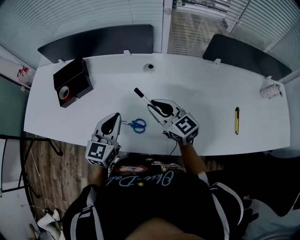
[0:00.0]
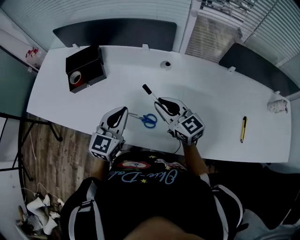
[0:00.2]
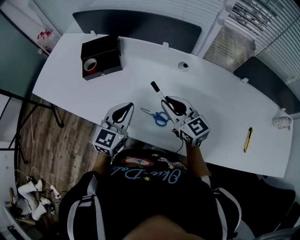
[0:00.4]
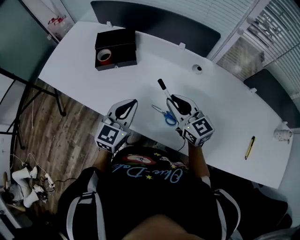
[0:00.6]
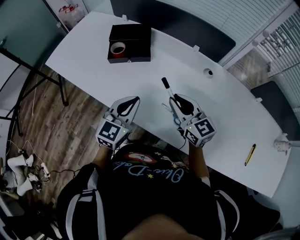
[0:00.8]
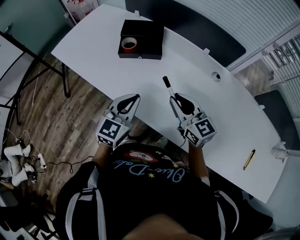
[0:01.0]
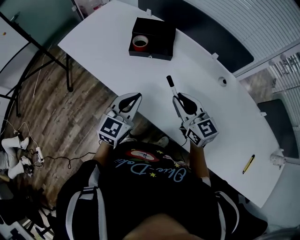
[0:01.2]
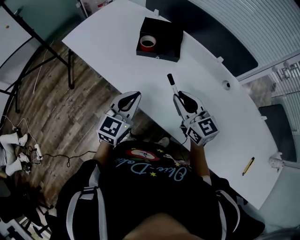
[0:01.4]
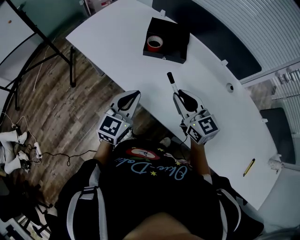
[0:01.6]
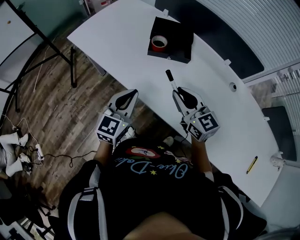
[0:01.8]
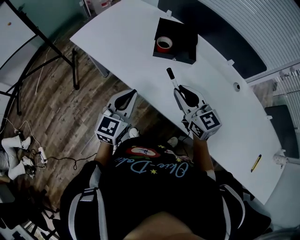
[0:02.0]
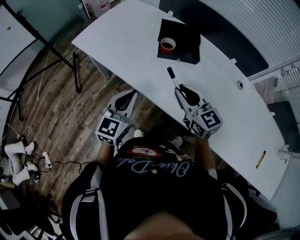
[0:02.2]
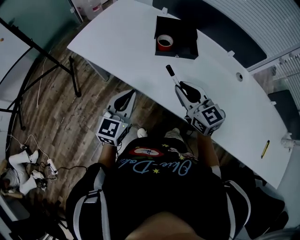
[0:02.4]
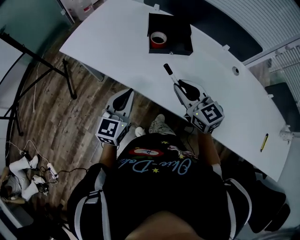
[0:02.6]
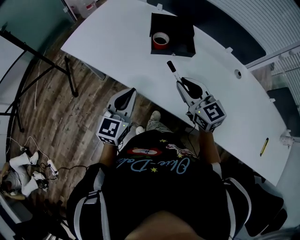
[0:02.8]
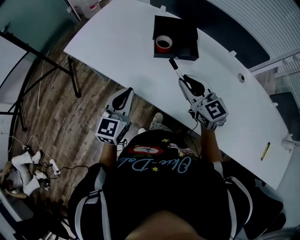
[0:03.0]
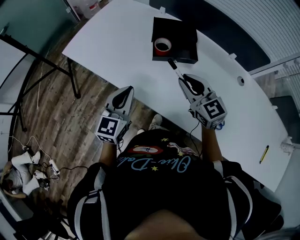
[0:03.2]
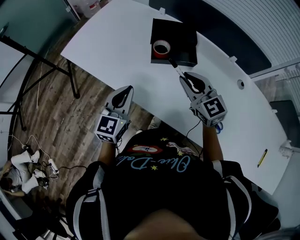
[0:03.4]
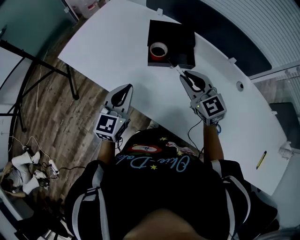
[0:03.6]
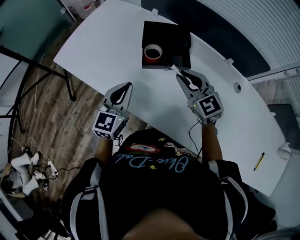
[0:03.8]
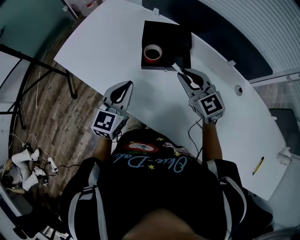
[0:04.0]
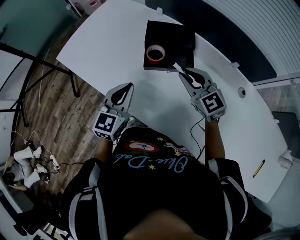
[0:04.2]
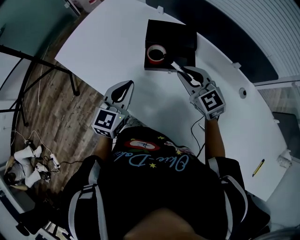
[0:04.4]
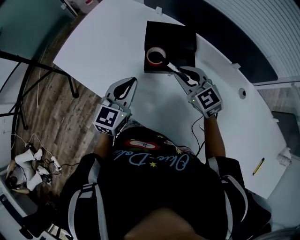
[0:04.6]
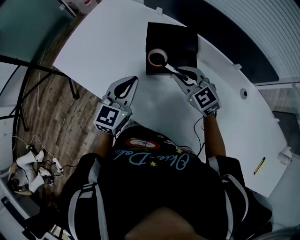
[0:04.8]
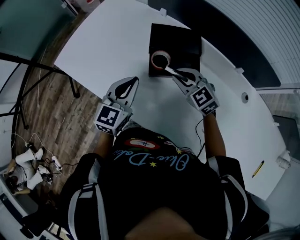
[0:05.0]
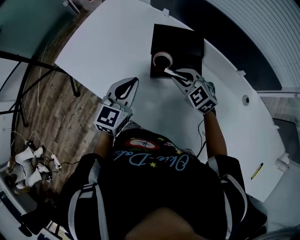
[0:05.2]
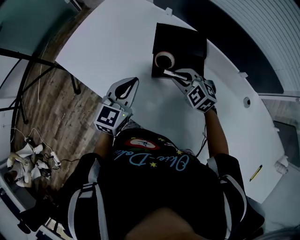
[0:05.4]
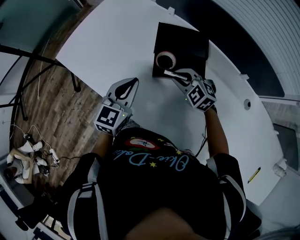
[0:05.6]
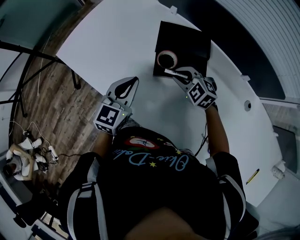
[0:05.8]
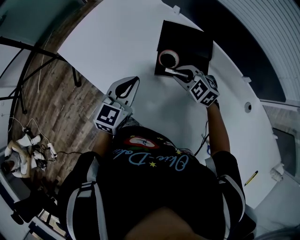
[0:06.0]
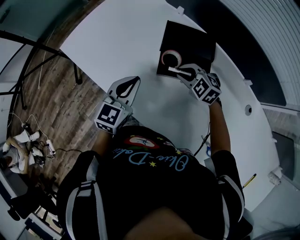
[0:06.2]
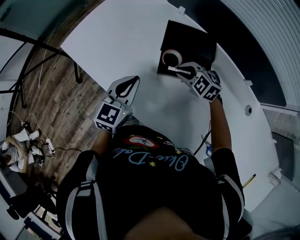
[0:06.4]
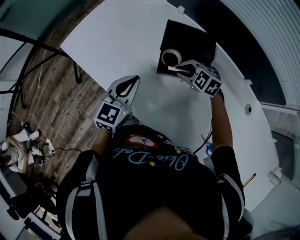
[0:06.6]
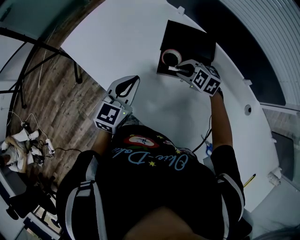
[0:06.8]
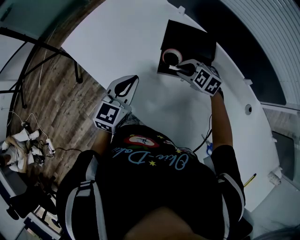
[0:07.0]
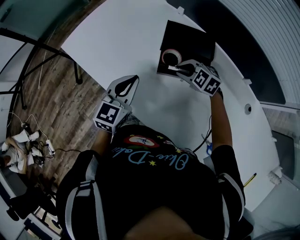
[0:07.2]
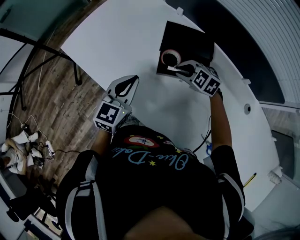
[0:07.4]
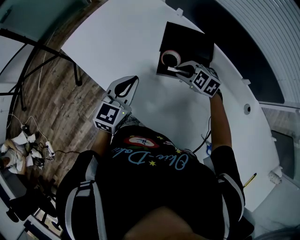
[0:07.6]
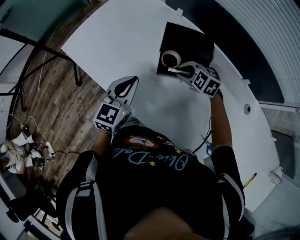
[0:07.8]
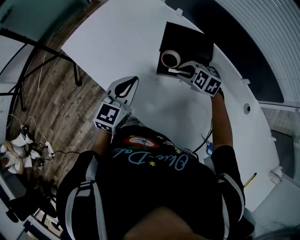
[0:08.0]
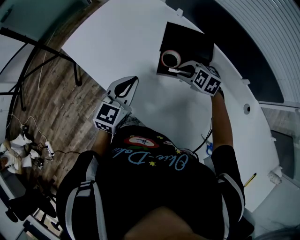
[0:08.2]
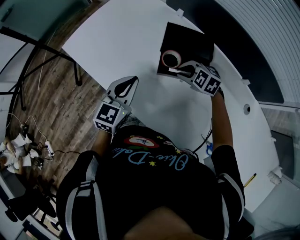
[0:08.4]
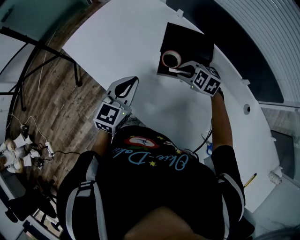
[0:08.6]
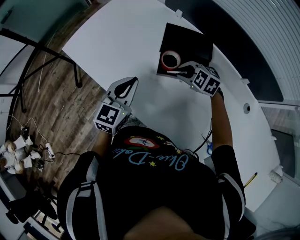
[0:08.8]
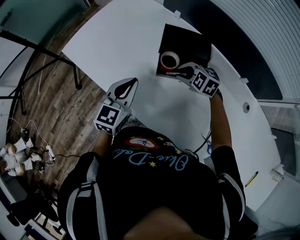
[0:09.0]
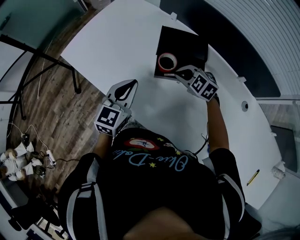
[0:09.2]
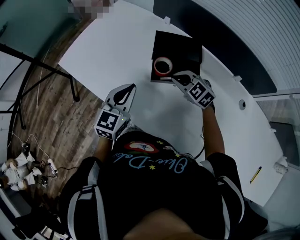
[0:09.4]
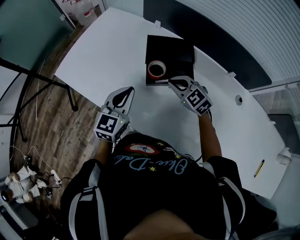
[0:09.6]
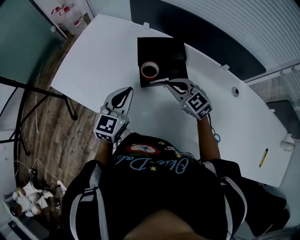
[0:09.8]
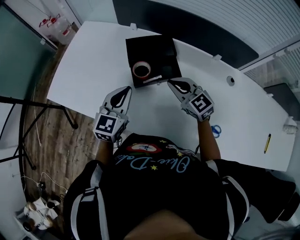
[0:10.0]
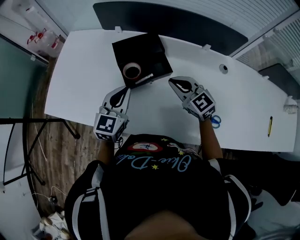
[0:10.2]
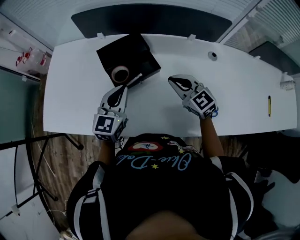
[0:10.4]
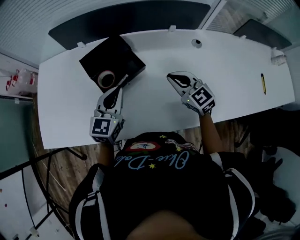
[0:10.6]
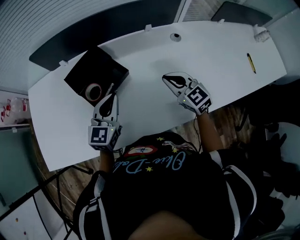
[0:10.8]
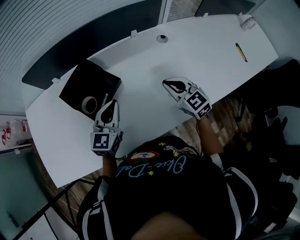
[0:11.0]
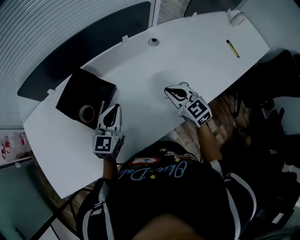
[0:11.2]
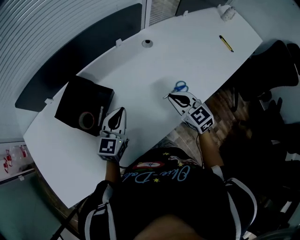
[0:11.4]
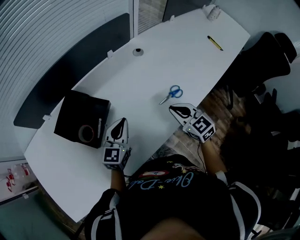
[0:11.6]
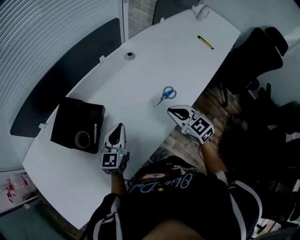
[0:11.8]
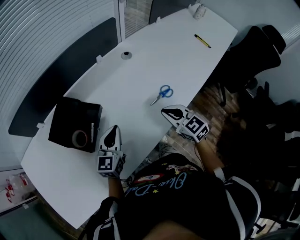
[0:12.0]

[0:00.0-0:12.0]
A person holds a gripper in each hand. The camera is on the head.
0:00.0 to 0:01.6: Both grippers move to the left, about 30 cm. The right gripper turns by about 20 degrees; the left gripper turns by some 20 degrees.
0:01.6 to 0:03.0: The right gripper travels forward and to the left by about 10 cm; the left gripper goes about 10 cm to the left and forward.
0:03.0 to 0:04.4: The right gripper is displaced forward by about 15 cm; the left gripper heads forward and to the right, covering about 15 cm.
0:04.4 to 0:06.0: The left gripper shifts by approximately 5 cm, while the right gripper travels downward and forward by roughly 10 cm, and changes its angle by about 30 degrees.
0:06.0 to 0:07.6: The grippers make only small movements.
0:07.6 to 0:09.0: The two grippers keep their place.
0:09.0 to 0:10.4: The right gripper shifts by roughly 20 cm, and tilts its fingers some 30 degrees upward; the left gripper shifts by roughly 10 cm, and rotates roughly 30 degrees.
0:10.4 to 0:12.0: The left gripper ends up some 15 cm from where it was, and rotates roughly 40 degrees; the right gripper moves some 20 cm, and swivels about 50 degrees.

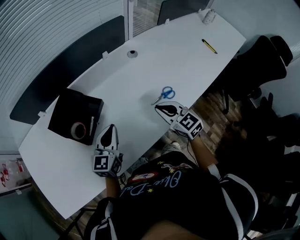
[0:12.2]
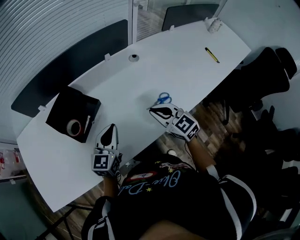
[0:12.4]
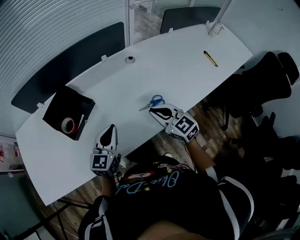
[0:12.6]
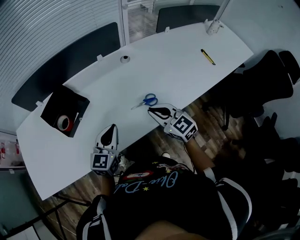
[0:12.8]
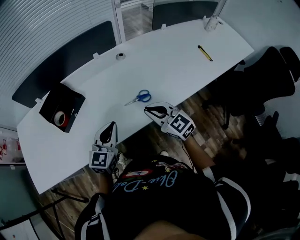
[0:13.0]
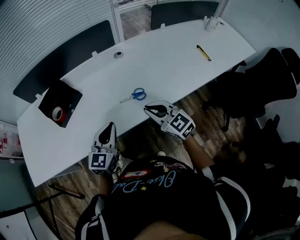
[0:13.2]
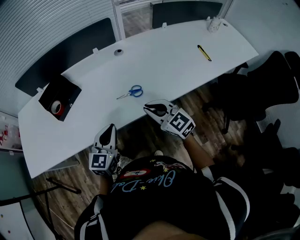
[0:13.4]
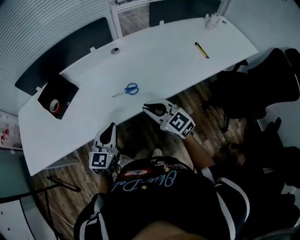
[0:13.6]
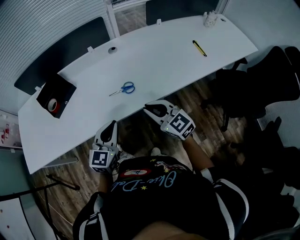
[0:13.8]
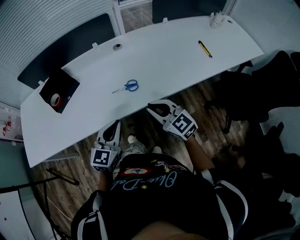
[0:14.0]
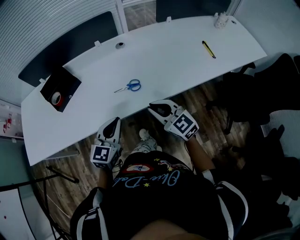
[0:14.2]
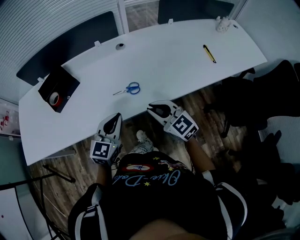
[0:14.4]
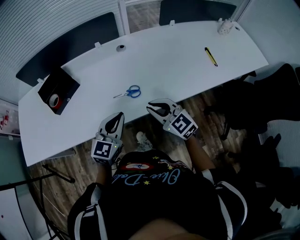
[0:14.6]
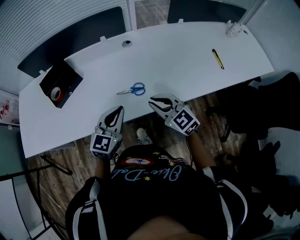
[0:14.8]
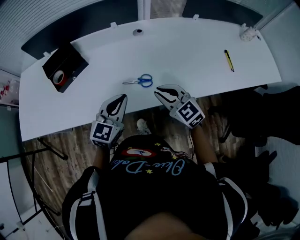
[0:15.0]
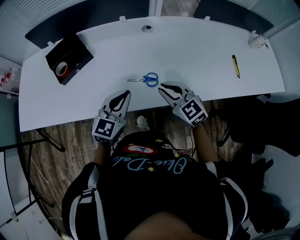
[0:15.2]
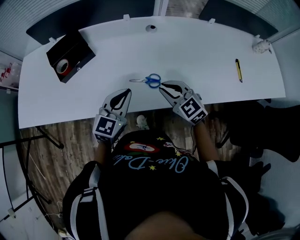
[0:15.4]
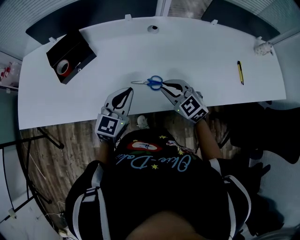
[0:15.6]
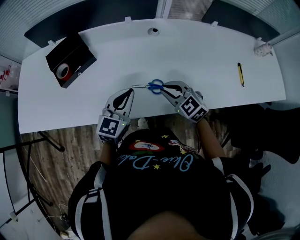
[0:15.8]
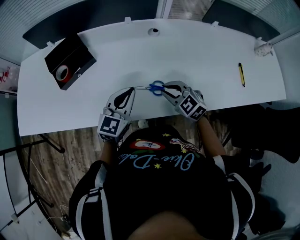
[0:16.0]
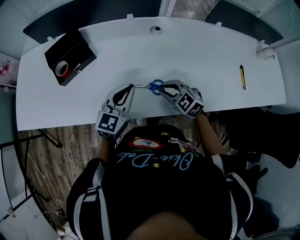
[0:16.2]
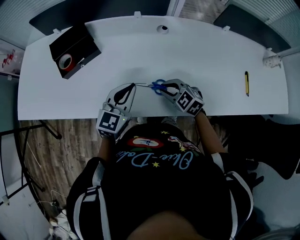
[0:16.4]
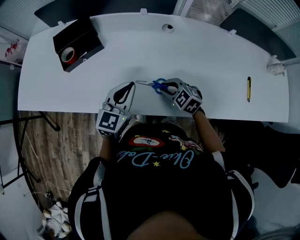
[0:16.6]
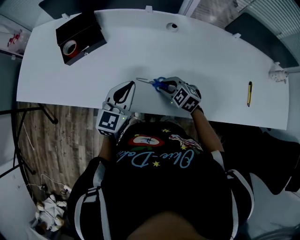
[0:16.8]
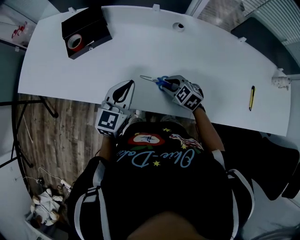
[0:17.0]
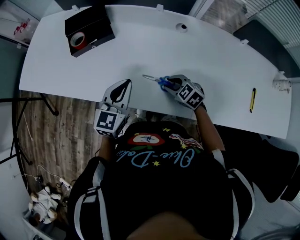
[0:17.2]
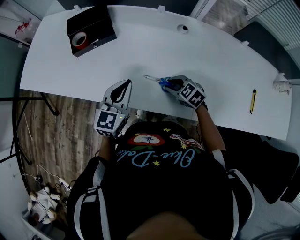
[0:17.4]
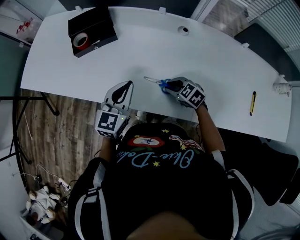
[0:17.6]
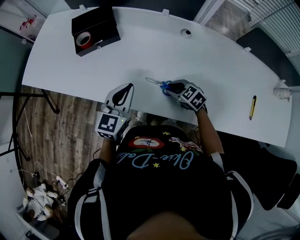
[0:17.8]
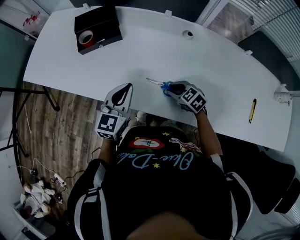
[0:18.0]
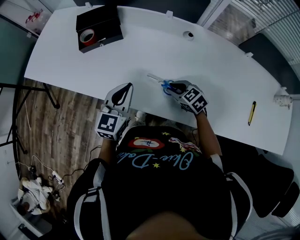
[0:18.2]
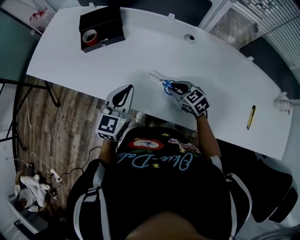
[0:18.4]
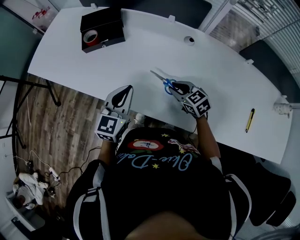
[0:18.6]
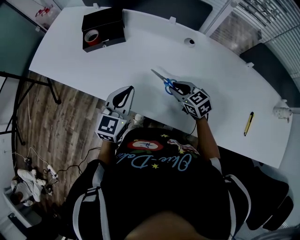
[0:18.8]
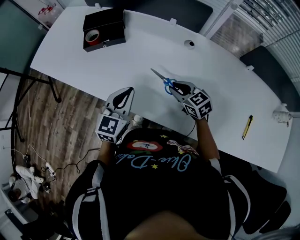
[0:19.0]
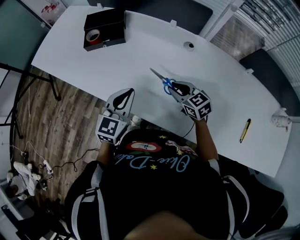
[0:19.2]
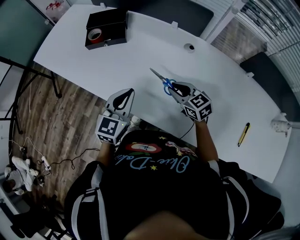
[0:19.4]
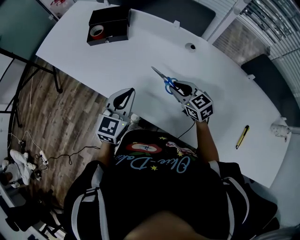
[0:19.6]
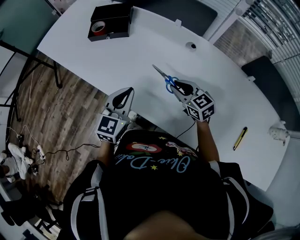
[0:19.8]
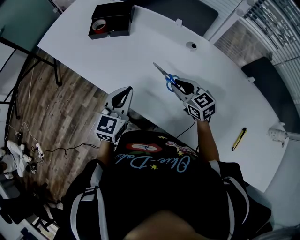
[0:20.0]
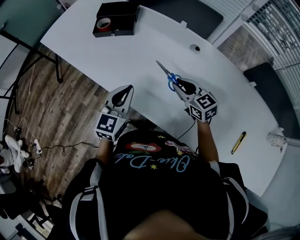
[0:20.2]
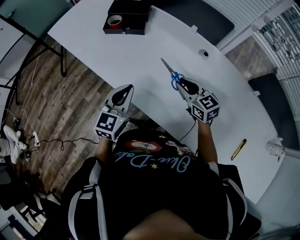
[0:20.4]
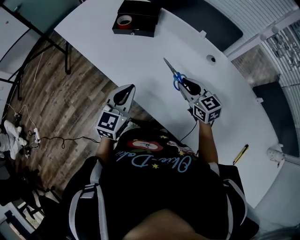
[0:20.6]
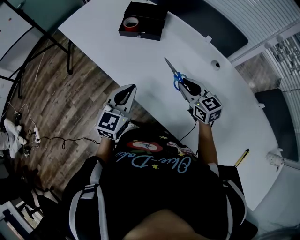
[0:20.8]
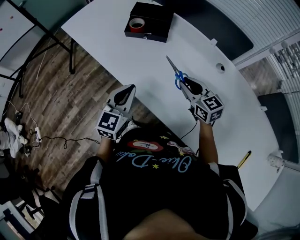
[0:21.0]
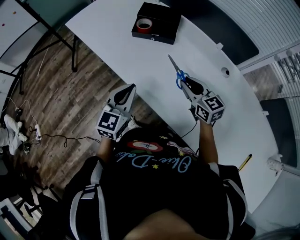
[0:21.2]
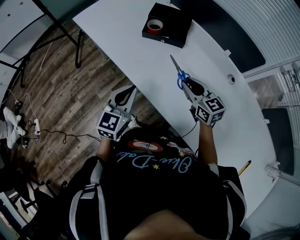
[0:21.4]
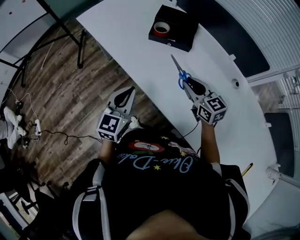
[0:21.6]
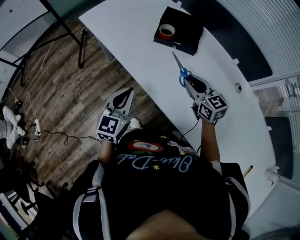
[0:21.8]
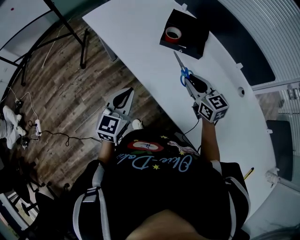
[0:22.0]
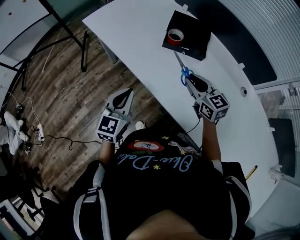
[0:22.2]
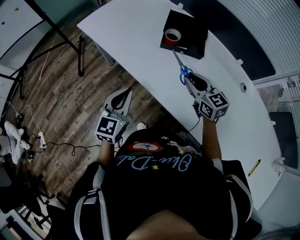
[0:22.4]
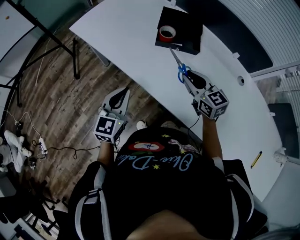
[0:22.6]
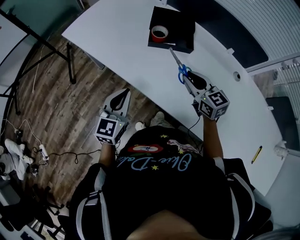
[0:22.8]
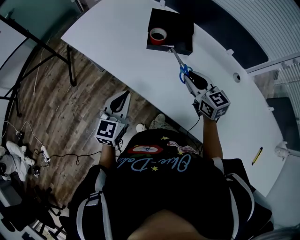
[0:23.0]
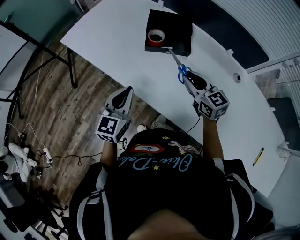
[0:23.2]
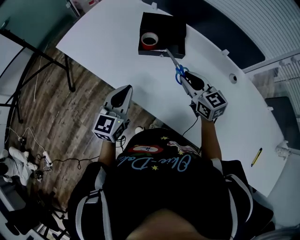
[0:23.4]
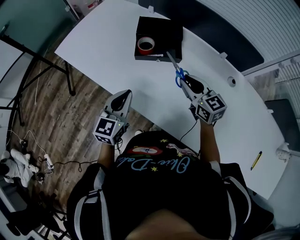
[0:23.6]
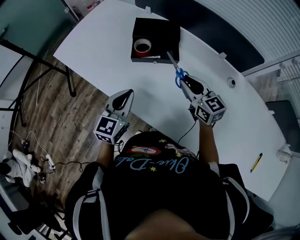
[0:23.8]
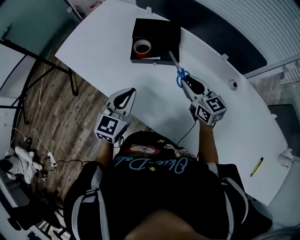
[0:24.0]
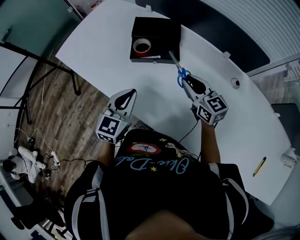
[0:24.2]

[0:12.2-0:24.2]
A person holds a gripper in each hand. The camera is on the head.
0:12.2 to 0:13.8: Both grippers move to the right and backward, approximately 25 cm. The right gripper turns by some 20 degrees.
0:13.8 to 0:15.2: The grippers both shift forward by approximately 10 cm.
0:15.2 to 0:16.6: The left gripper shifts roughly 5 cm forward. The right gripper travels downward and forward by roughly 15 cm, and rotates roughly 30 degrees.
0:16.6 to 0:18.2: The grippers make only small movements.
0:18.2 to 0:19.8: The left gripper moves backward and to the right, roughly 10 cm. Meanwhile the right gripper moves upward and to the right, about 10 cm.
0:19.8 to 0:21.2: The right gripper moves to the left and forward, some 15 cm; the left gripper shifts roughly 15 cm to the left.
0:21.2 to 0:22.6: Both grippers travel together to the left and forward, about 15 cm.
0:22.6 to 0:24.2: Both grippers travel together to the right and forward, approximately 15 cm.
